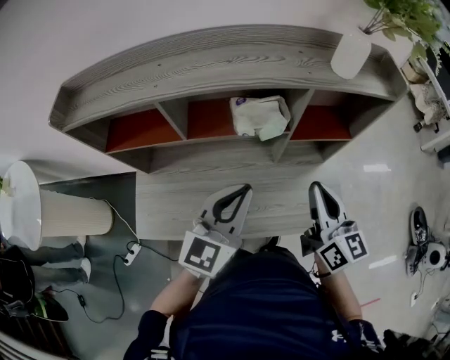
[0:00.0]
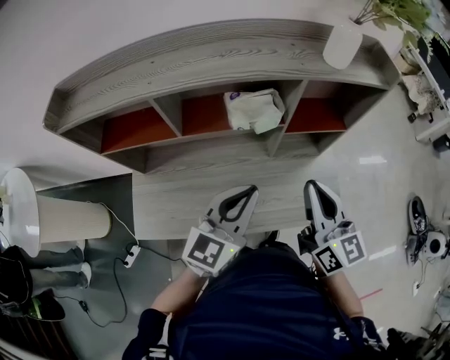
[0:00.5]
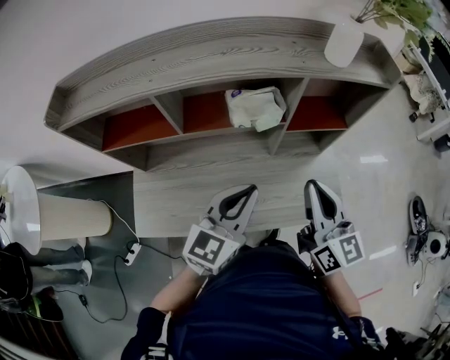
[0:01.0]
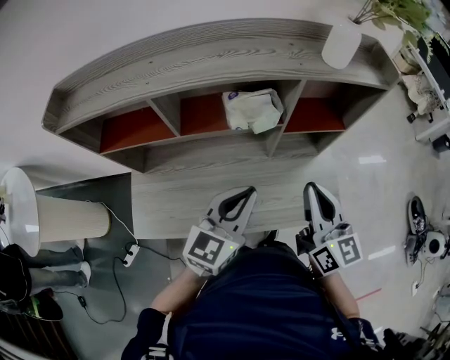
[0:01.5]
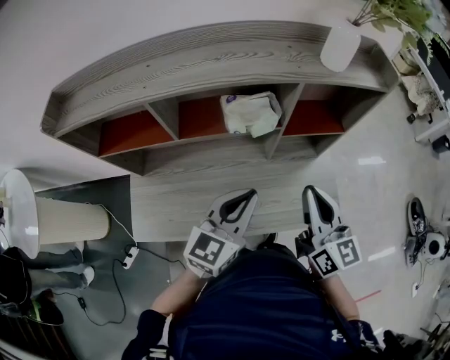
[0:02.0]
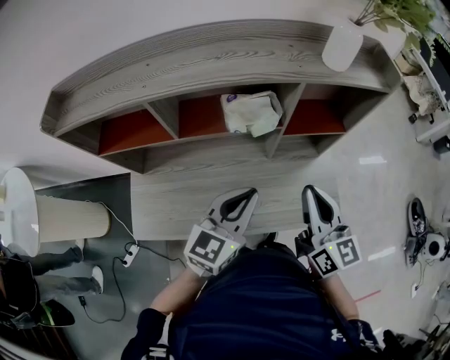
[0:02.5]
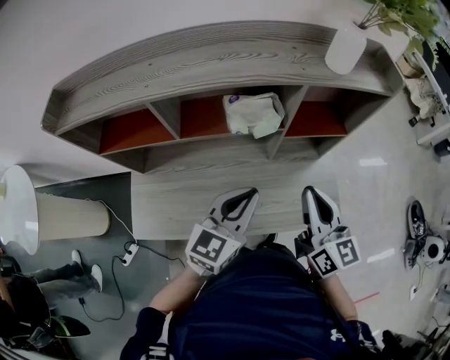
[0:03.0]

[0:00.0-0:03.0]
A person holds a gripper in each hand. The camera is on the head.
0:00.0 to 0:03.0: The grippers stay close to where they were, moving slightly.

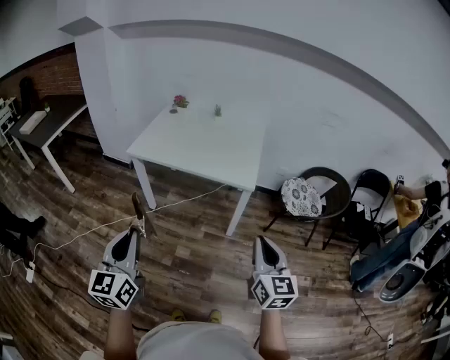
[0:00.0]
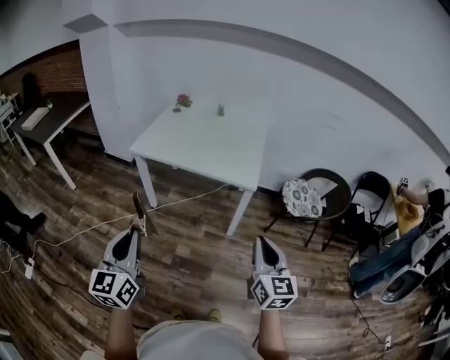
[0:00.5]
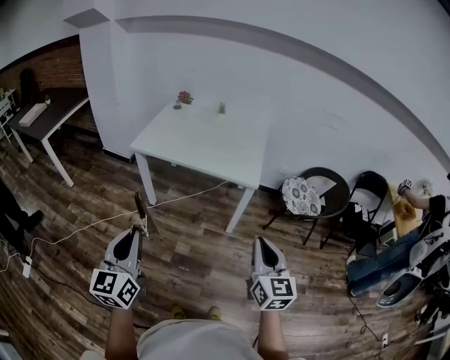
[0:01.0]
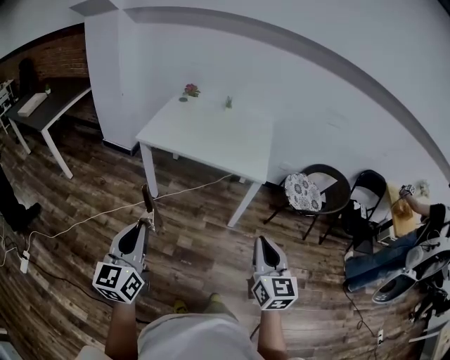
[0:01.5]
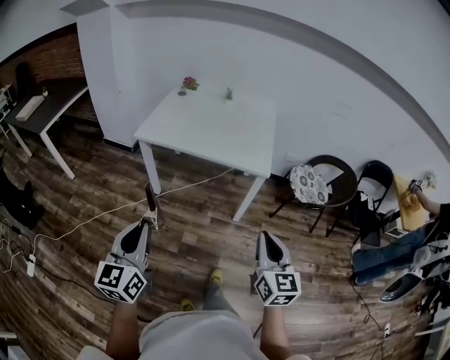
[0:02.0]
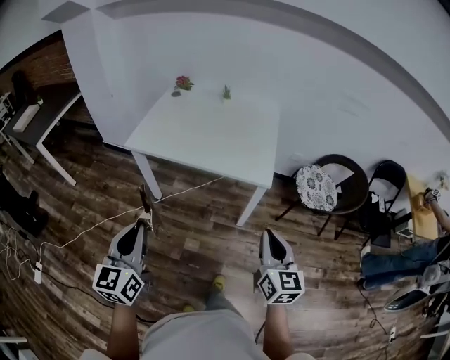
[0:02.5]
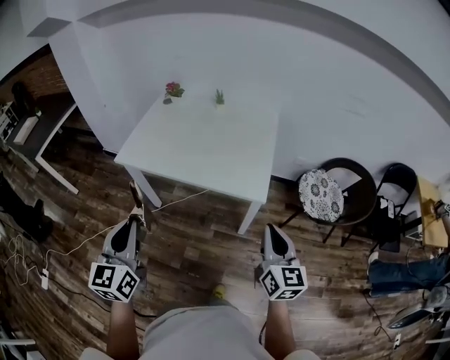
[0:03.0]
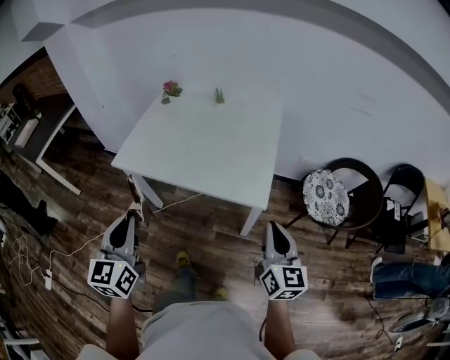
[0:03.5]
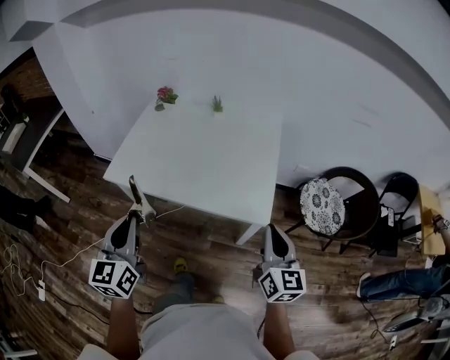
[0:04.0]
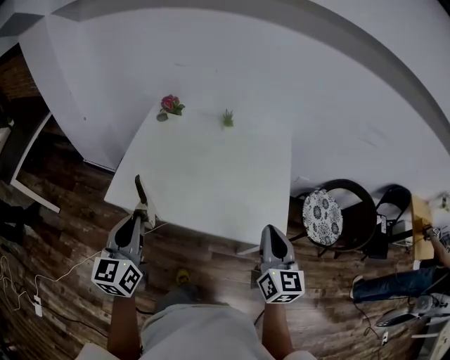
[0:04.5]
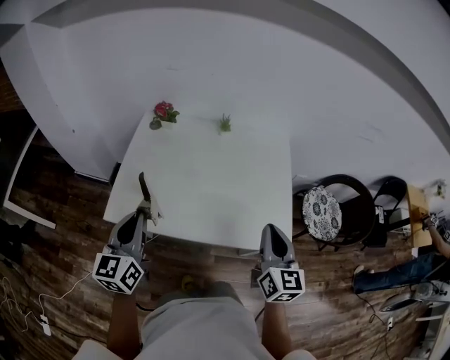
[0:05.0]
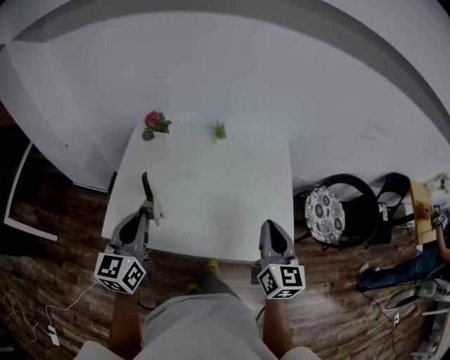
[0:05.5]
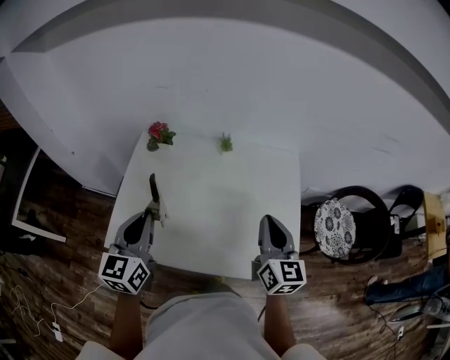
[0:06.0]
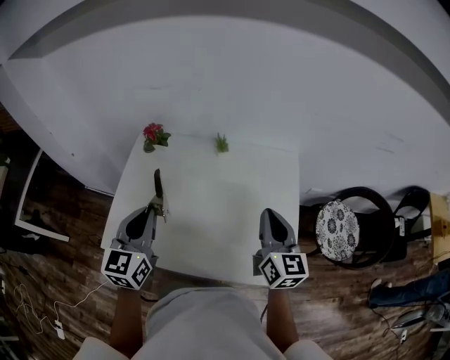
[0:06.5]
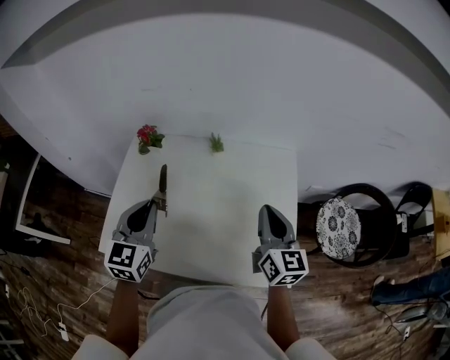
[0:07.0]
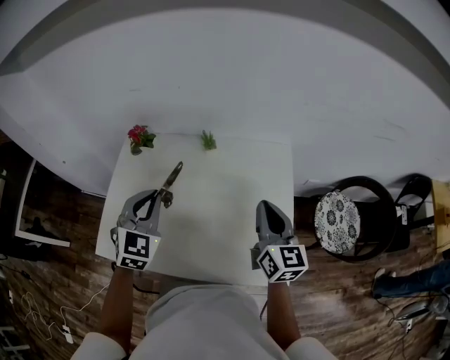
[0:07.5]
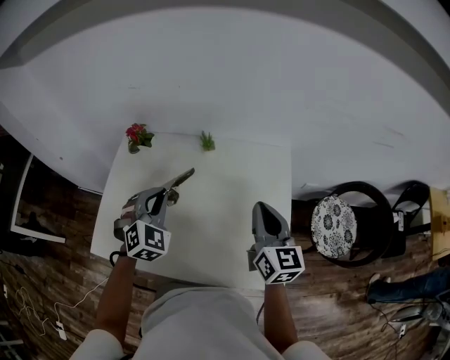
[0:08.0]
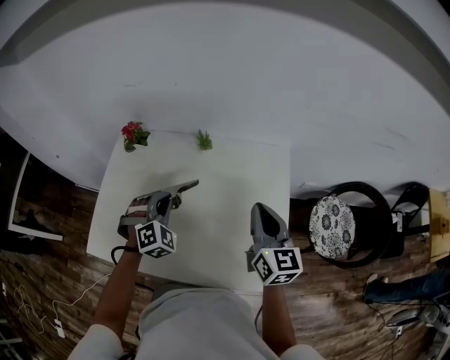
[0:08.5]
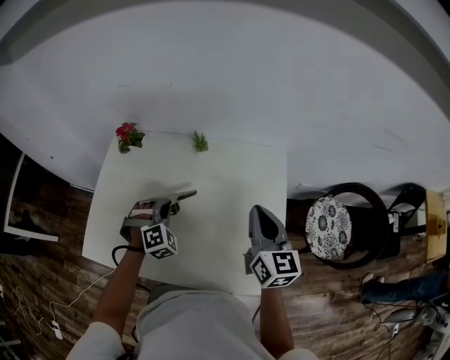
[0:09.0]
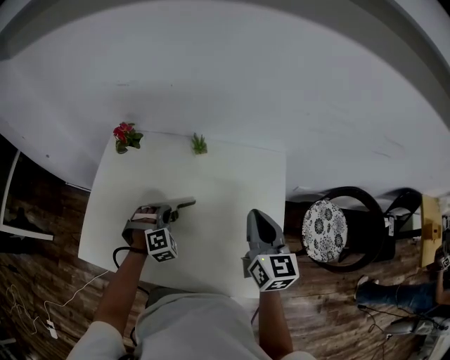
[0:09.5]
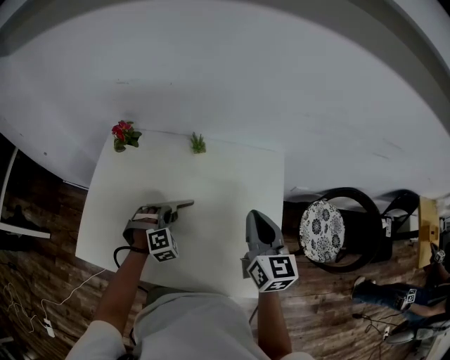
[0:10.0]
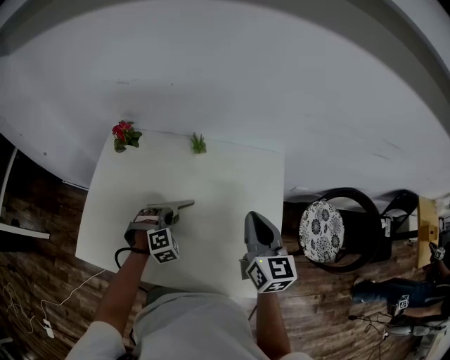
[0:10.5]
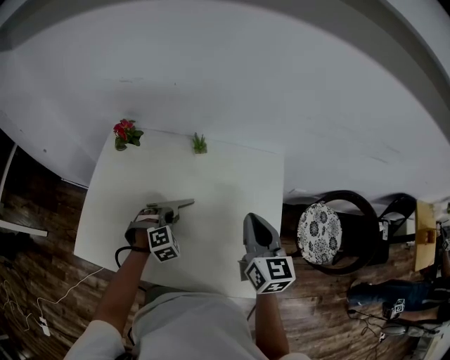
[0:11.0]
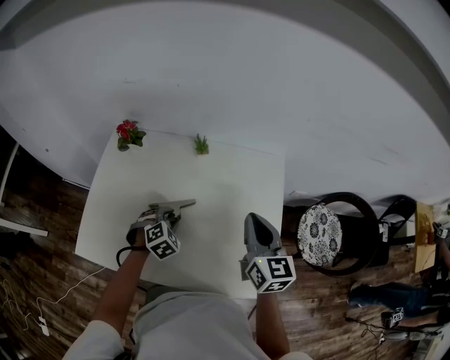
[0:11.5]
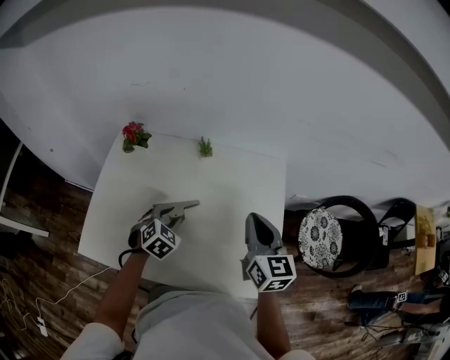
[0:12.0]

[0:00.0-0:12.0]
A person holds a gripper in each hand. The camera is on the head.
0:00.0 to 0:02.0: Both grippers move to the left, some 5 cm.
0:02.0 to 0:04.0: The grippers both shift forward by approximately 35 cm.
0:04.0 to 0:06.0: The left gripper is displaced forward by some 30 cm; the right gripper goes approximately 30 cm forward and to the left.
0:06.0 to 0:08.0: The left gripper moves forward, to the right and downward, about 20 cm, and twists some 50 degrees clockwise, seen from behind; the right gripper moves forward and to the right, roughly 10 cm.
0:08.0 to 0:10.0: The left gripper is displaced downward by roughly 20 cm, and rotates about 30 degrees.
0:10.0 to 0:12.0: The left gripper swivels approximately 40 degrees, and opens.

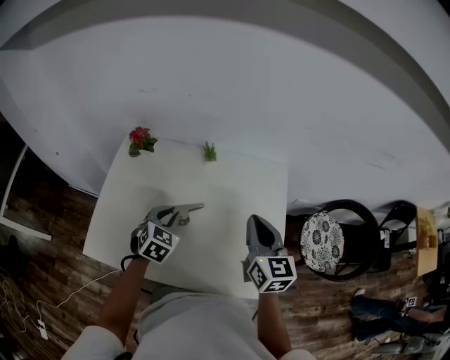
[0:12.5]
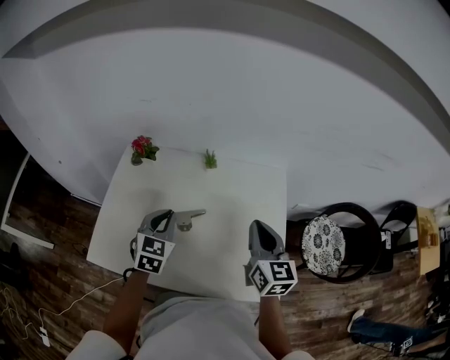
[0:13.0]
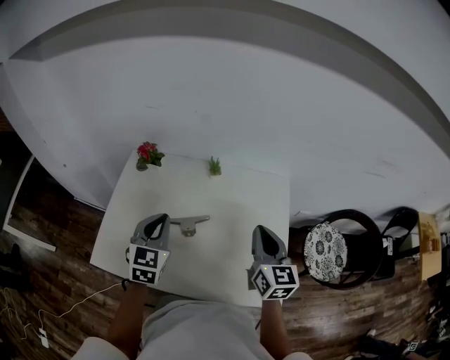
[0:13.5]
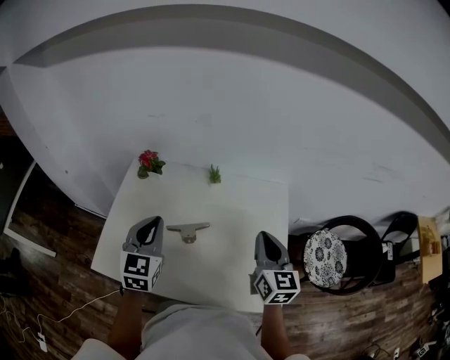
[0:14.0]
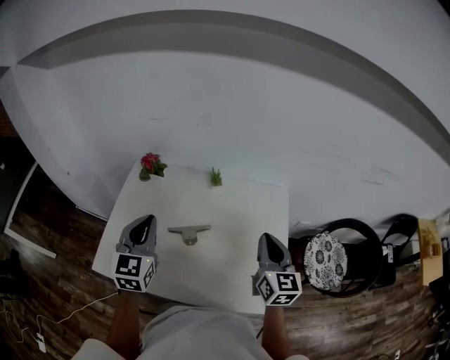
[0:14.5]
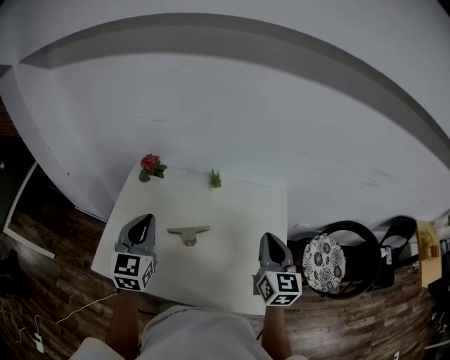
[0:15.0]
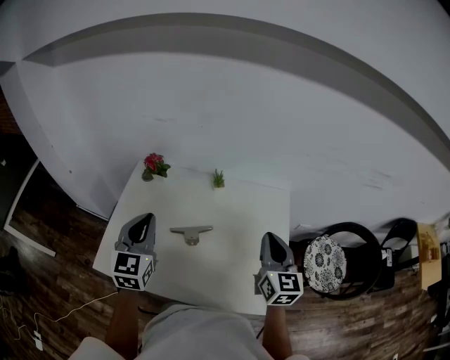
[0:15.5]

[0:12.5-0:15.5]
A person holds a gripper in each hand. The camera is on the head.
0:12.5 to 0:14.0: The left gripper is displaced upward by roughly 15 cm, and swivels some 30 degrees.
0:14.0 to 0:15.5: The grippers make only small movements.

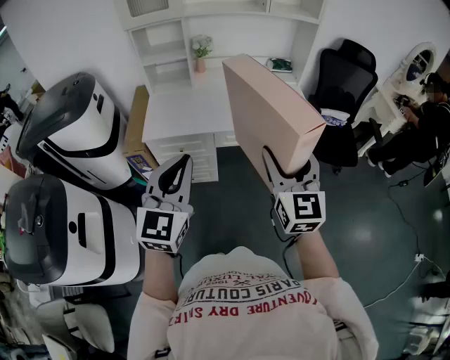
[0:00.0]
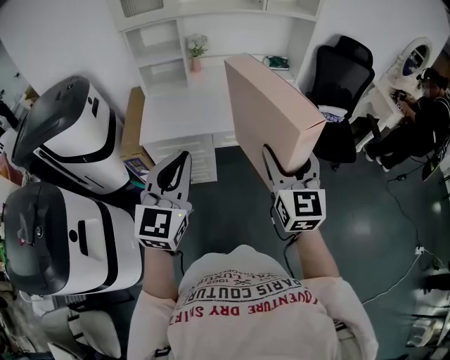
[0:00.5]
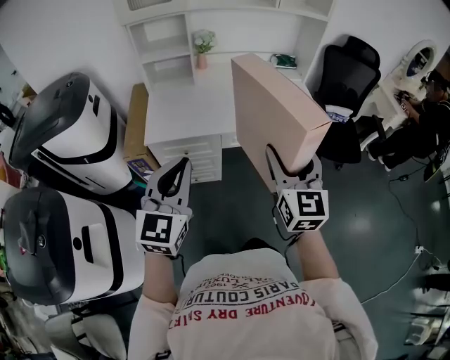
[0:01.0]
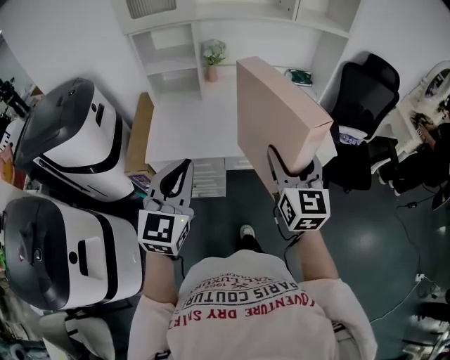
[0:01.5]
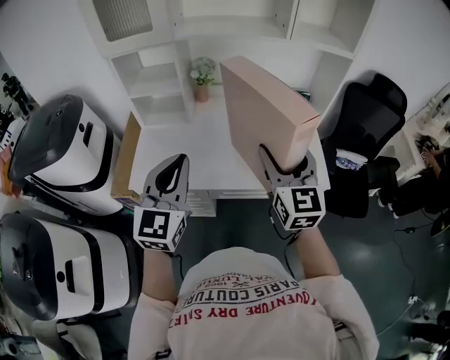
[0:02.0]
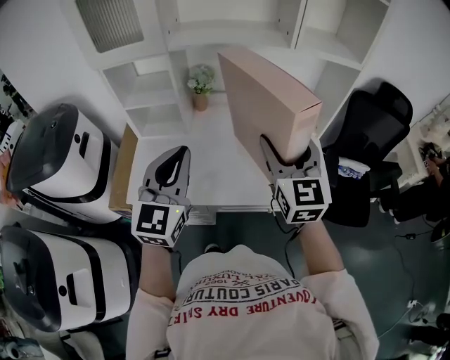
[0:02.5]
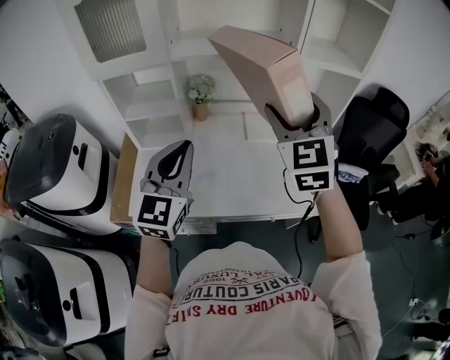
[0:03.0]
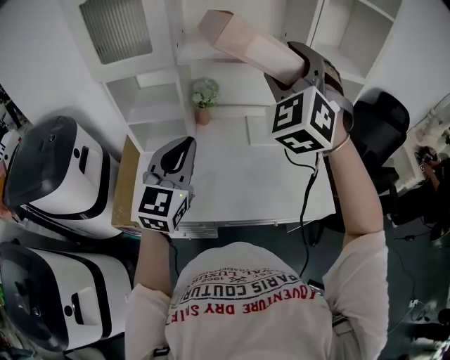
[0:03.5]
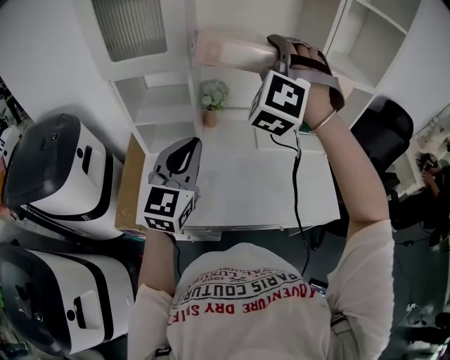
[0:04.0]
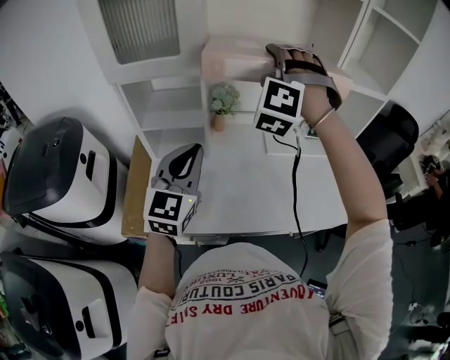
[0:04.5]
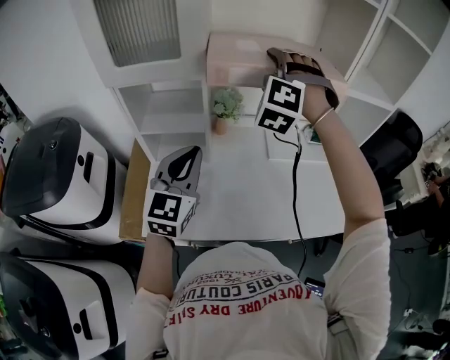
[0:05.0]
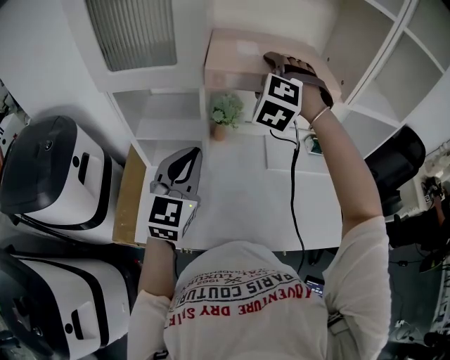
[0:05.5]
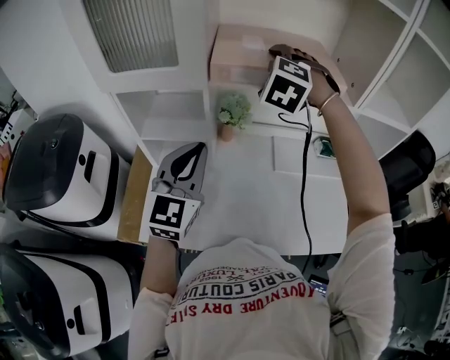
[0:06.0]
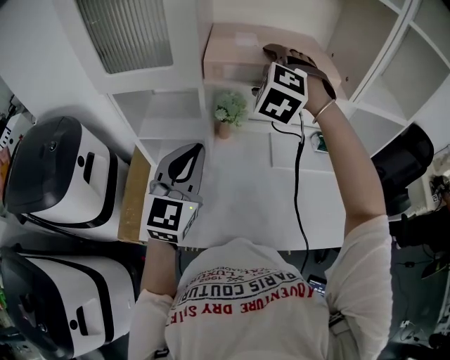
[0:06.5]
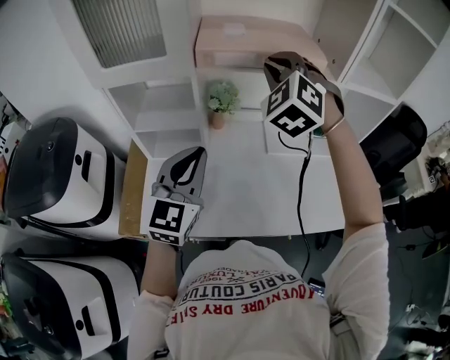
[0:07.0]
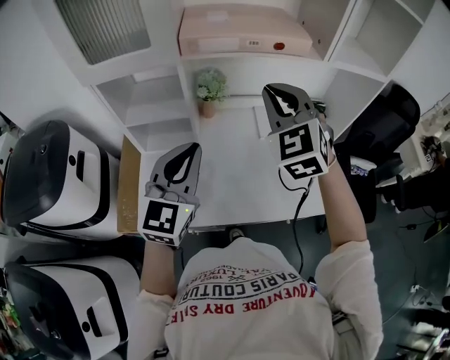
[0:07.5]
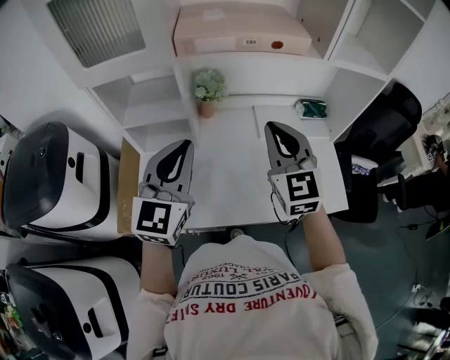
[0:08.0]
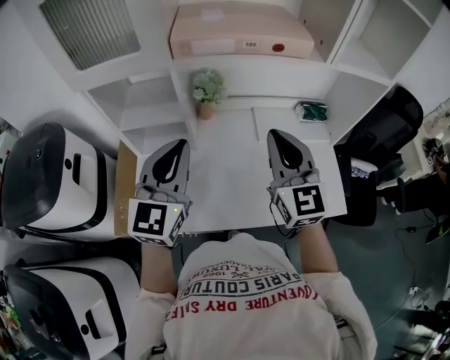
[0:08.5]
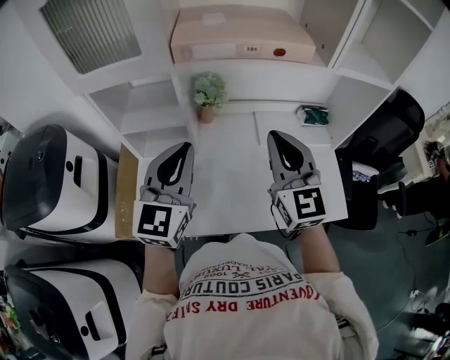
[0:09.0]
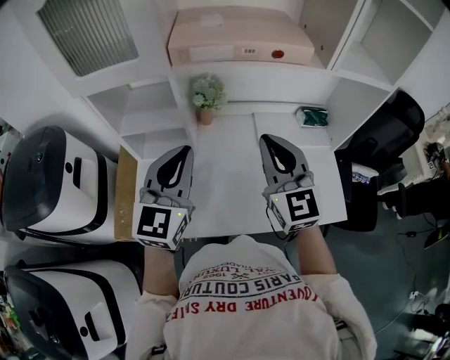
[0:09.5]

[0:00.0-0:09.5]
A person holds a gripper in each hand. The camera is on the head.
0:00.0 to 0:02.0: Both grippers travel together forward, roughly 30 cm.
0:02.0 to 0:04.0: The left gripper heads forward and to the left, covering some 15 cm; the right gripper moves forward, upward and to the left, some 30 cm, and rolls counterclockwise, seen from behind, by approximately 80 degrees.
0:04.0 to 0:05.5: The left gripper shifts some 10 cm forward; the right gripper moves forward, downward and to the left, approximately 20 cm, and swivels about 20 degrees.
0:05.5 to 0:07.5: The left gripper shifts about 5 cm backward. The right gripper moves backward and to the right, some 15 cm, rotates approximately 40 degrees, and closes.
0:07.5 to 0:09.5: The right gripper heads downward, covering roughly 5 cm, and turns by about 30 degrees.
